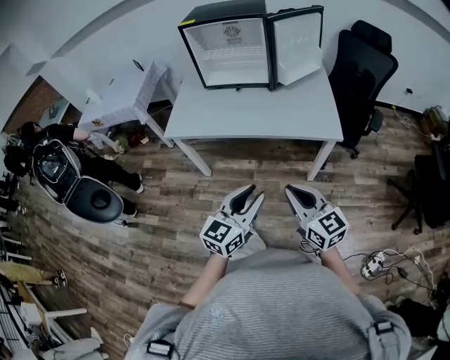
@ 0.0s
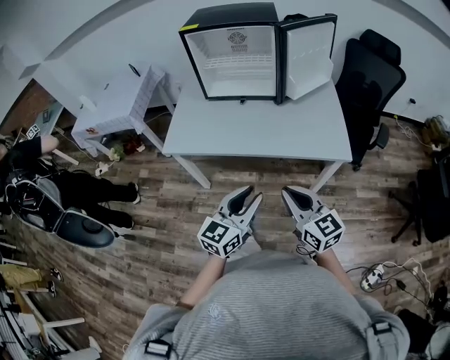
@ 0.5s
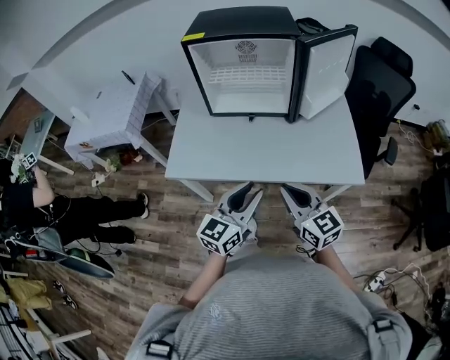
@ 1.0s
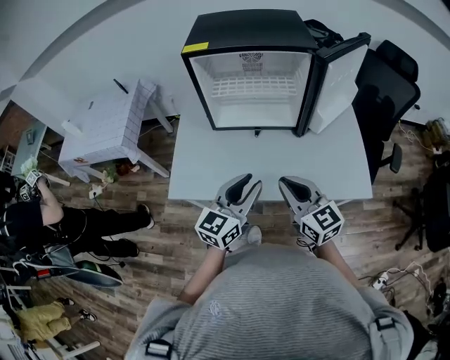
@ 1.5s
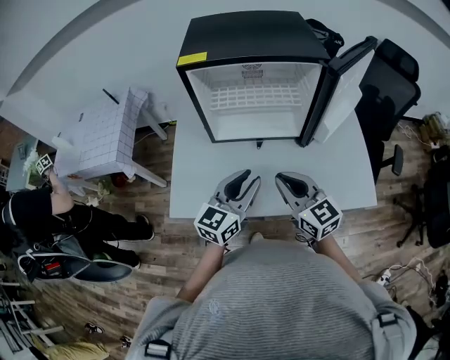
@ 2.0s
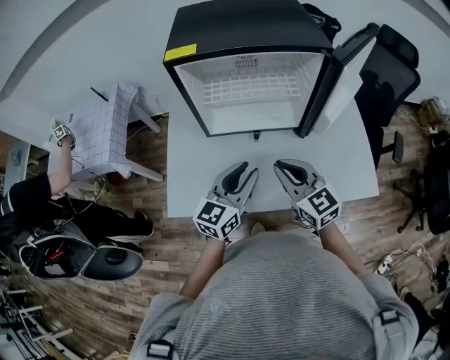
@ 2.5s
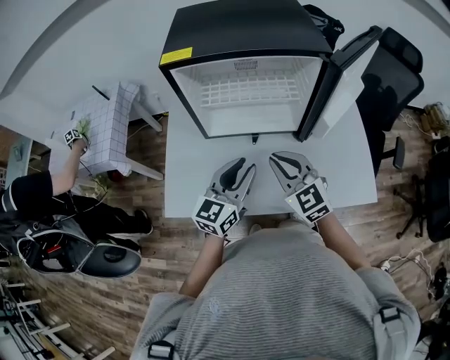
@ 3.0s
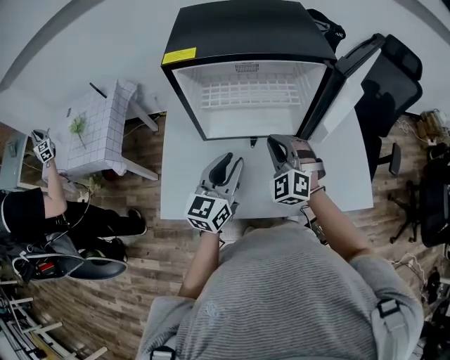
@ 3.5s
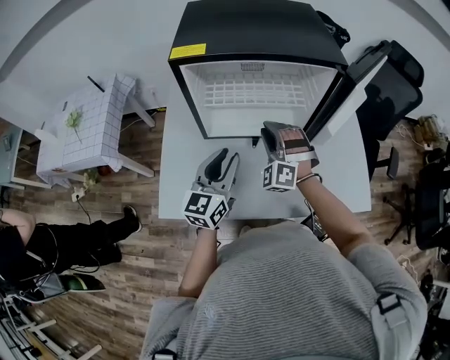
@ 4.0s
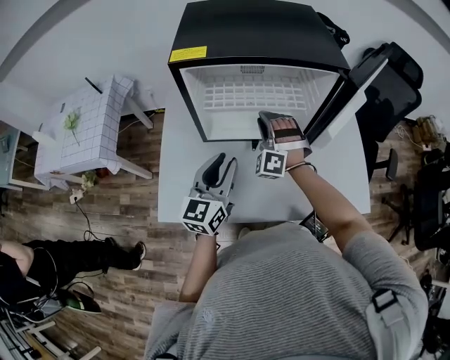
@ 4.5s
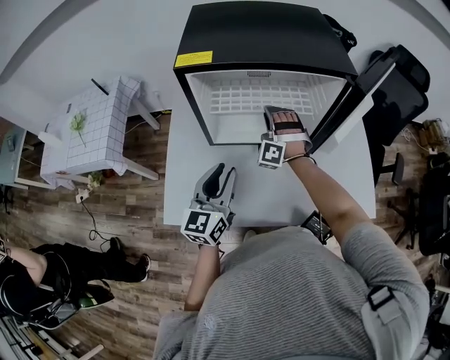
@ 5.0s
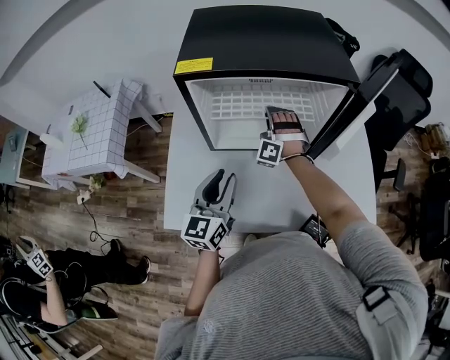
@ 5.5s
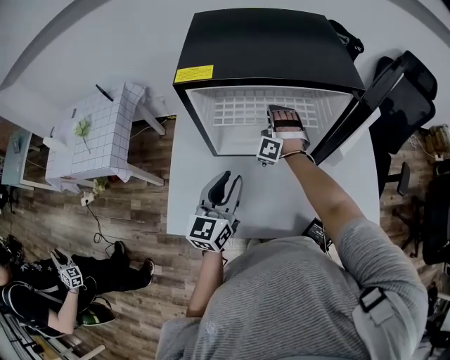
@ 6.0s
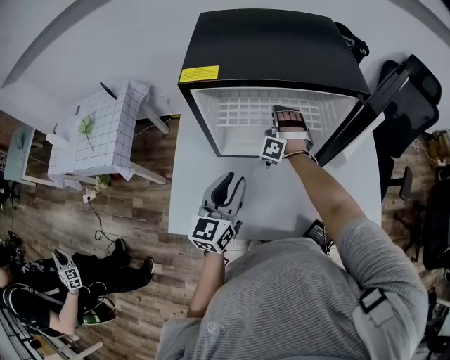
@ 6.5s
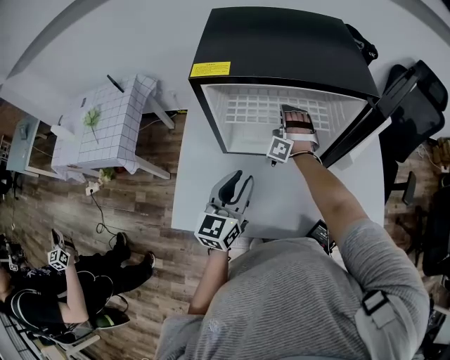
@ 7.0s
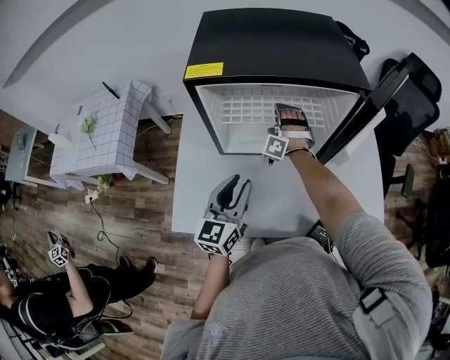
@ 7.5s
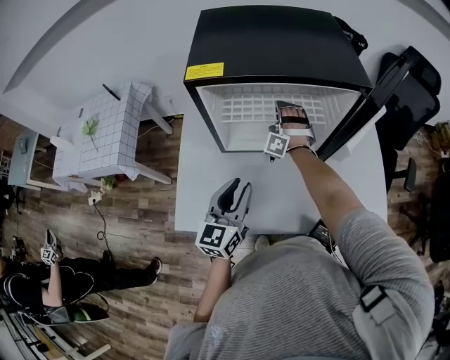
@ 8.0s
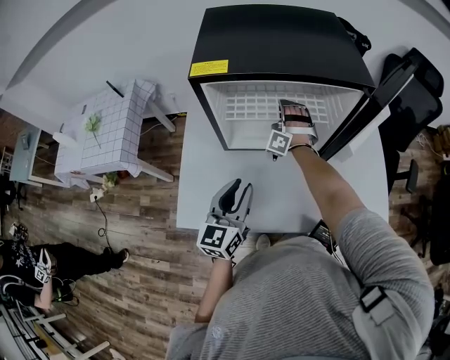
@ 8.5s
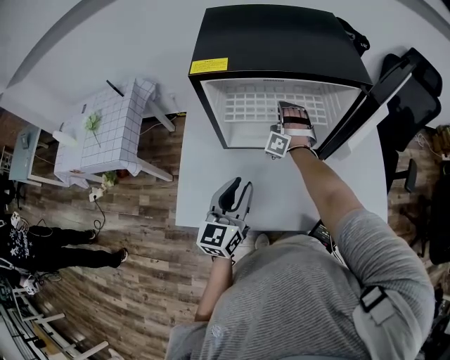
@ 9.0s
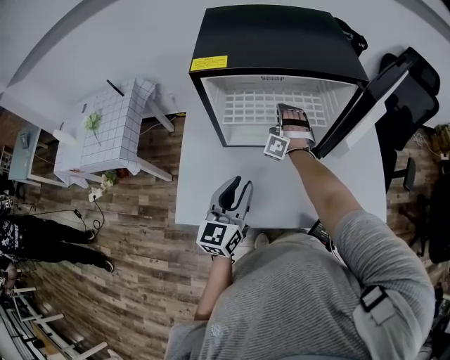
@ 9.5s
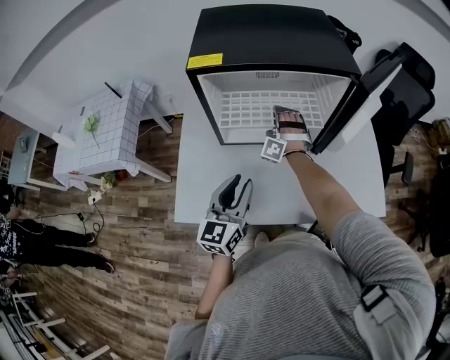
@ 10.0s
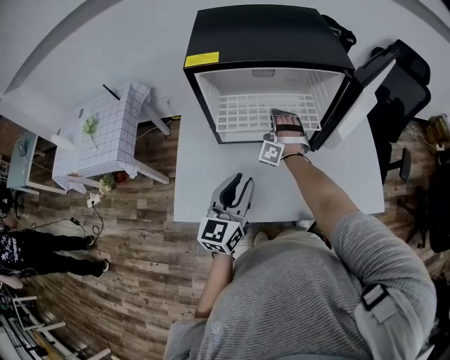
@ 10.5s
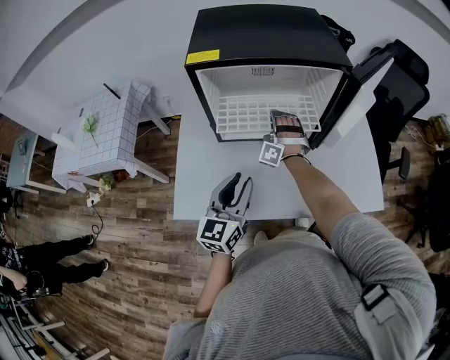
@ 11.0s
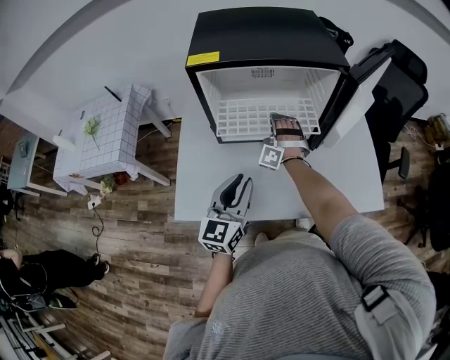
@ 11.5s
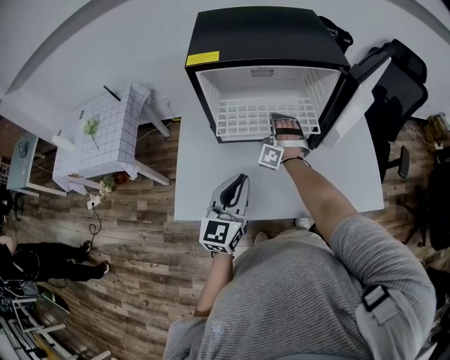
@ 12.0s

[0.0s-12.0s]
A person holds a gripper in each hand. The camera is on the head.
0.0s to 2.0s: Both grippers are carried forward, roughly 50 cm.
2.0s to 4.0s: The left gripper heads forward and to the left, covering roughly 10 cm, while the right gripper shifts about 20 cm forward, and rotates around the line of its fingers by roughly 70 degrees, counterclockwise from behind.
4.0s to 6.0s: The right gripper moves forward, roughly 15 cm, and swivels roughly 20 degrees.
6.0s to 8.0s: There are only small adjustments of the grippers.
8.0s to 10.0s: The right gripper travels backward by roughly 5 cm.
10.0s to 12.0s: The grippers move only a little.

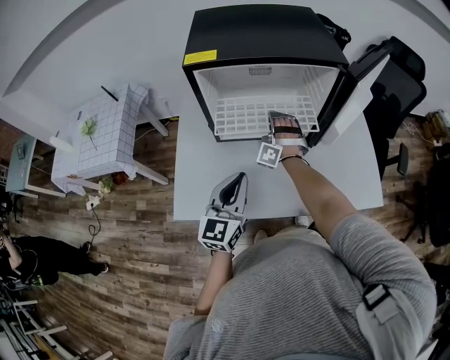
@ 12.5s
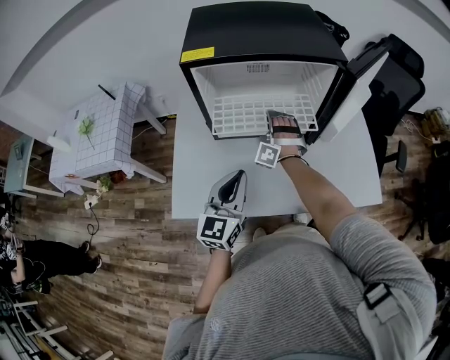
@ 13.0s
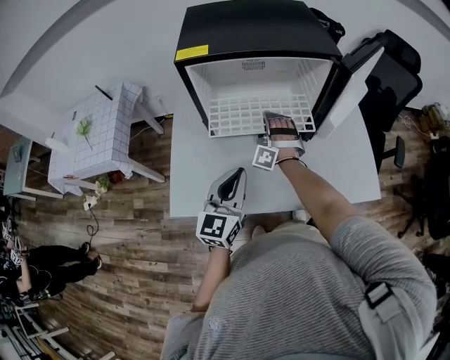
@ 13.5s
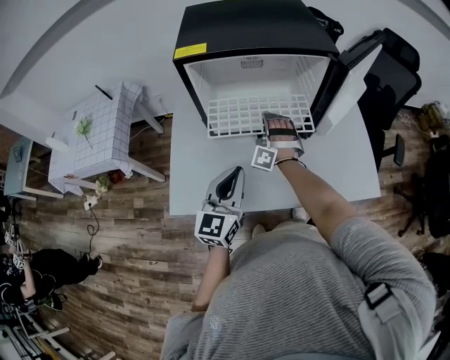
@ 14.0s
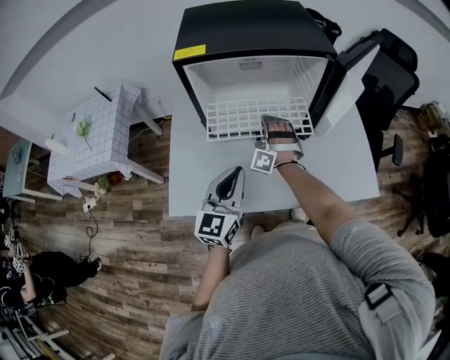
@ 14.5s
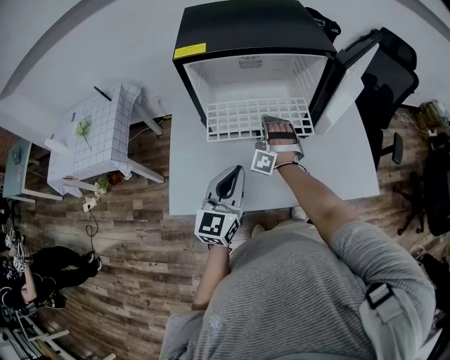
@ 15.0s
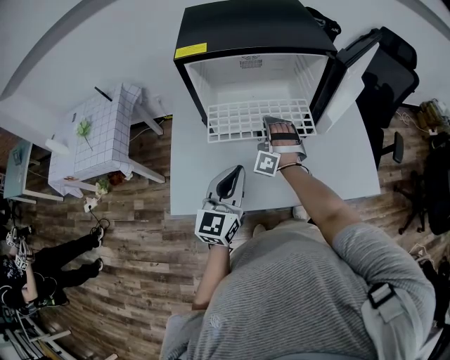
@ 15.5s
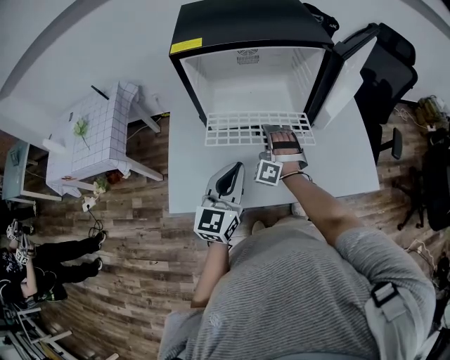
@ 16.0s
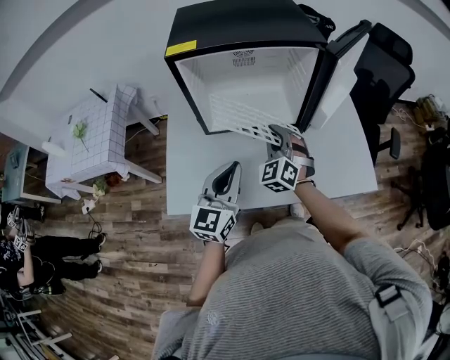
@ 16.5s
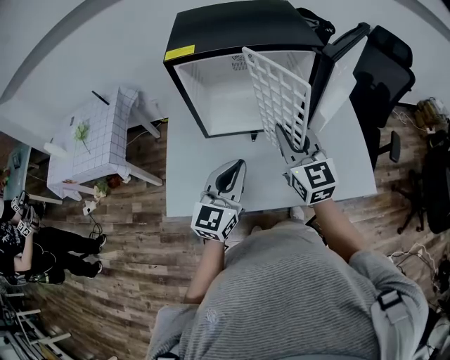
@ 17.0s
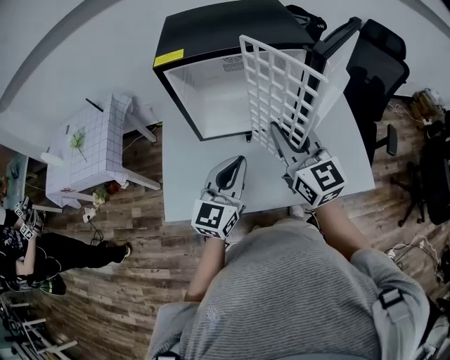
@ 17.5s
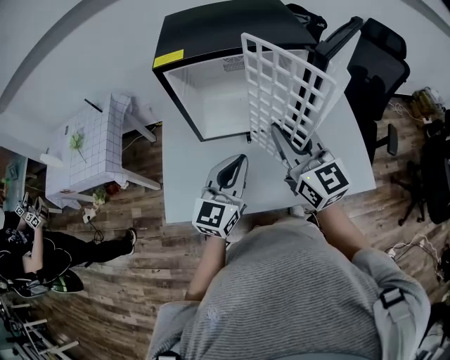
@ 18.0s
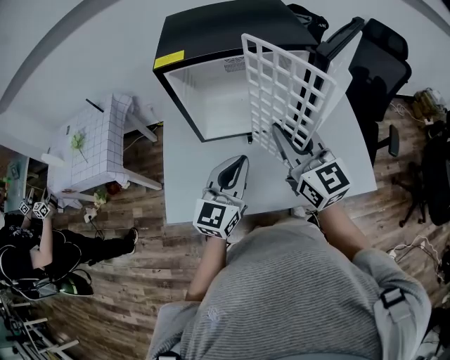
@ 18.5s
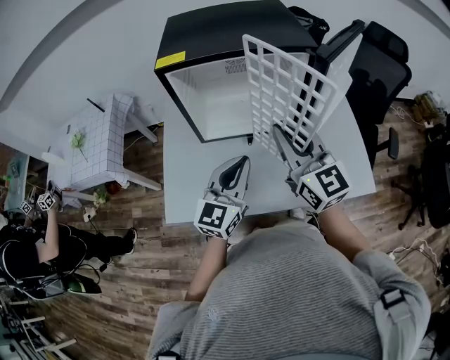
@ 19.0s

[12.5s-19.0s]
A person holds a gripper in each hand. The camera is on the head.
12.5s to 14.5s: The grippers move only a little.
14.5s to 17.0s: The right gripper heads upward, backward and to the right, covering approximately 20 cm, and twists approximately 70 degrees clockwise, seen from behind.
17.0s to 19.0s: The right gripper travels upward by about 5 cm.

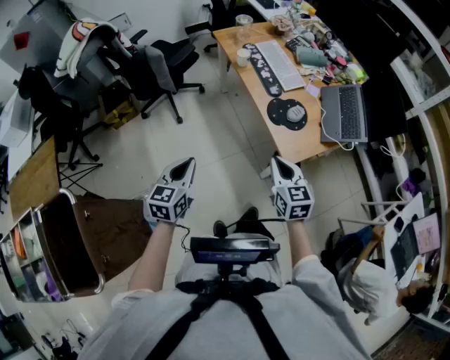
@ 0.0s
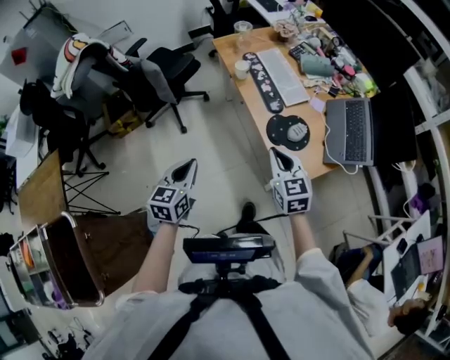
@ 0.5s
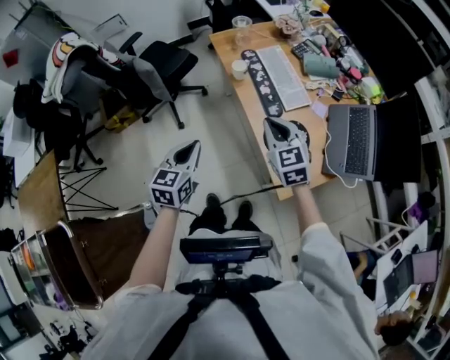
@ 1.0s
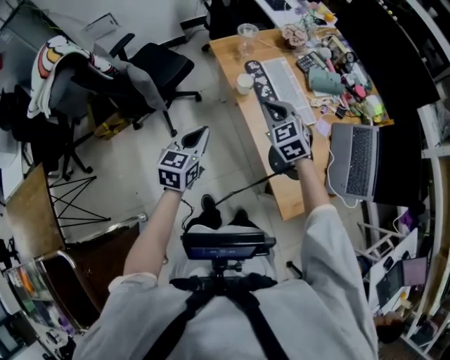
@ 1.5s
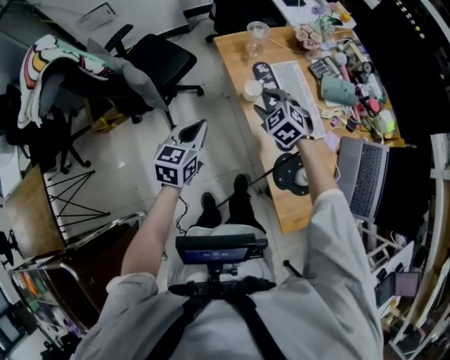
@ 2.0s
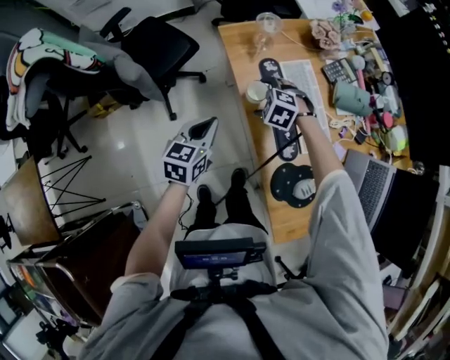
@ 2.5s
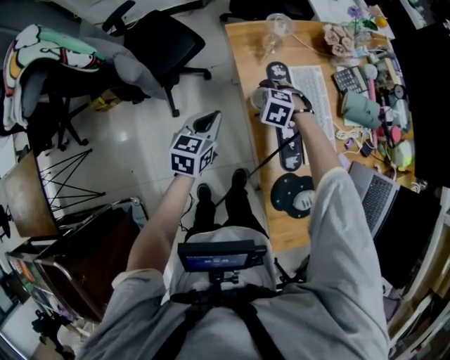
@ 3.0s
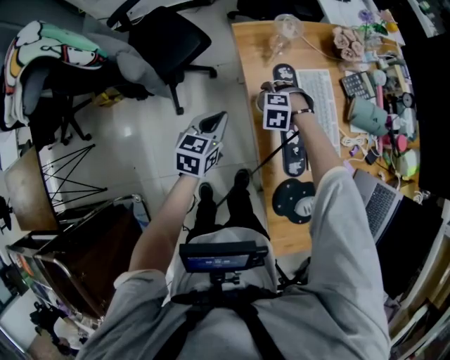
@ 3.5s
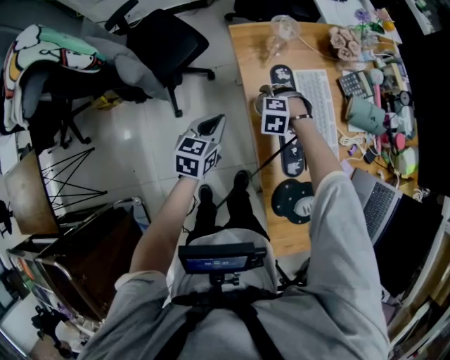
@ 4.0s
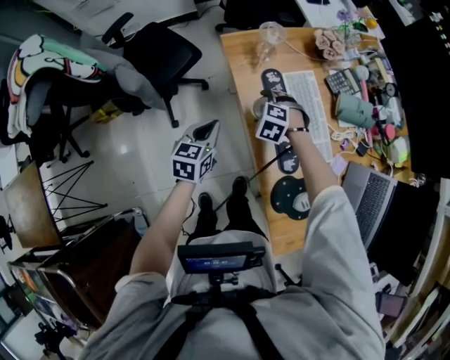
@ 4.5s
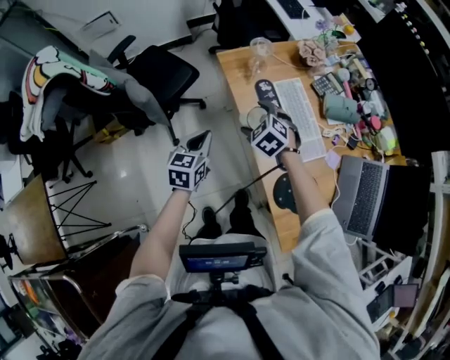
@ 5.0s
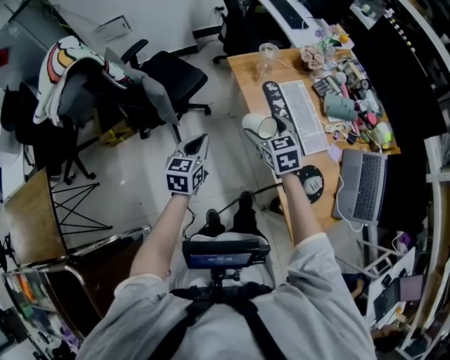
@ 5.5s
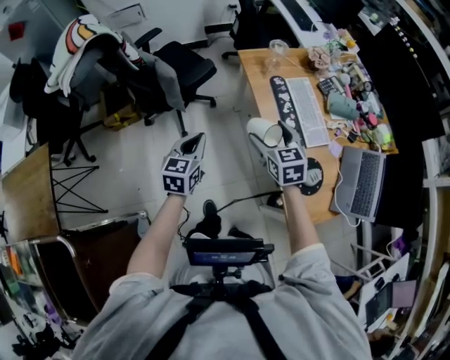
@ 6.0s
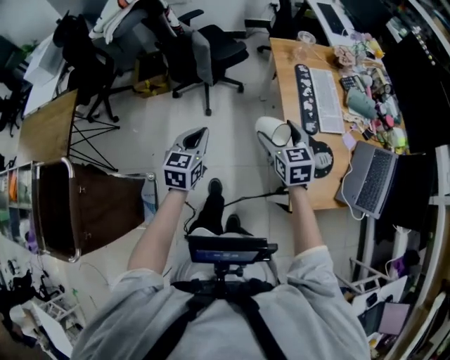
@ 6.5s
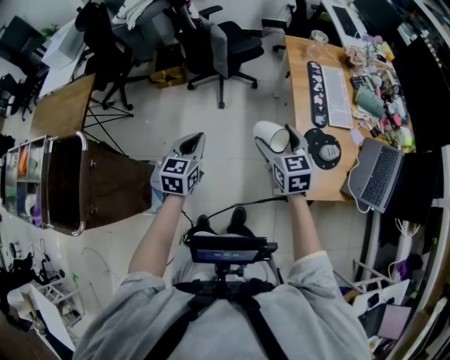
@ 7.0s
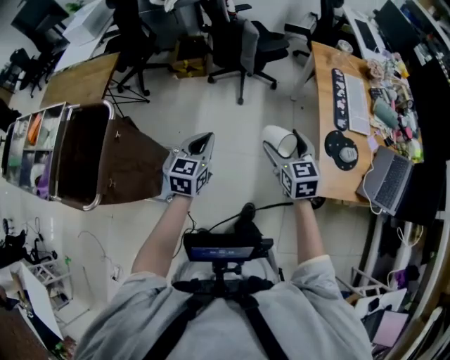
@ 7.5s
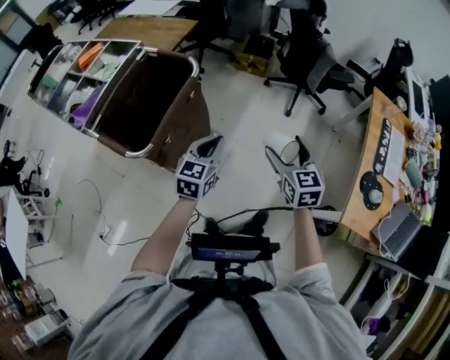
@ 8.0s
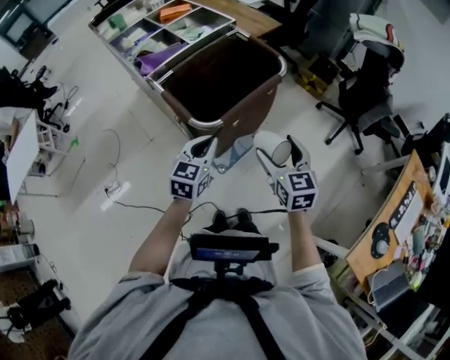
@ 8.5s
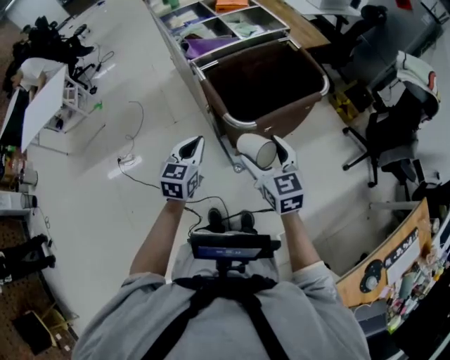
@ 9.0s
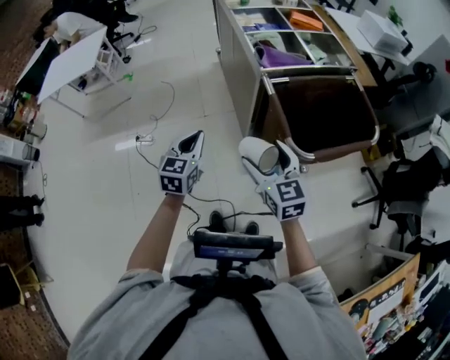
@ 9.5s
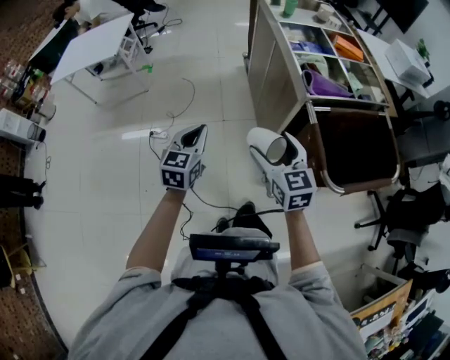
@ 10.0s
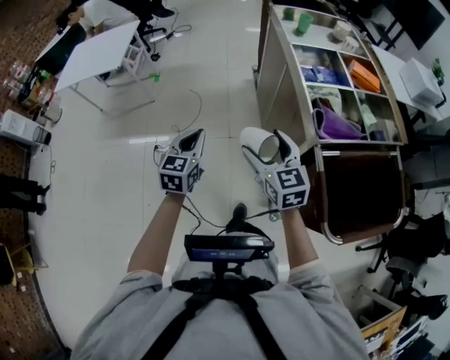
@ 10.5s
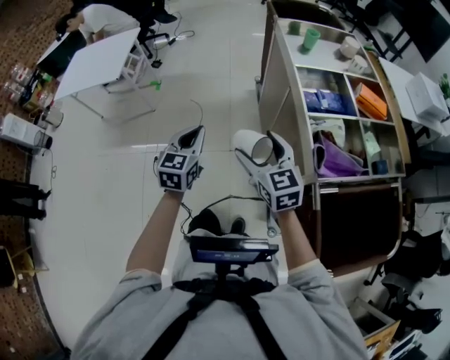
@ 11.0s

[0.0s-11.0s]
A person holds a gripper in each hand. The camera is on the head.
0.0s to 2.0s: Both grippers are carried forward, some 50 cm. The right gripper twists approximately 40 degrees counterclockwise, seen from behind, and opens.
2.0s to 3.5s: The left gripper ends up approximately 15 cm from where it was. The right gripper moves downward, about 20 cm, tilts its fingers some 30 degrees downward, and opens.
3.5s to 5.5s: The right gripper goes about 25 cm upward, and tilts its fingers about 40 degrees upward; the left gripper ends up roughly 20 cm from where it was.
5.5s to 7.5s: The grippers both shift backward and to the left by about 40 cm. The left gripper changes its angle by roughly 20 degrees. The right gripper swivels some 20 degrees.
7.5s to 9.0s: The two grippers travel together, roughly 60 cm. The left gripper changes its angle by some 60 degrees. Meanwhile the right gripper turns by approximately 60 degrees.
9.0s to 11.0s: Both grippers are carried roughly 50 cm. The right gripper turns by roughly 30 degrees; the left gripper changes its angle by roughly 30 degrees.
